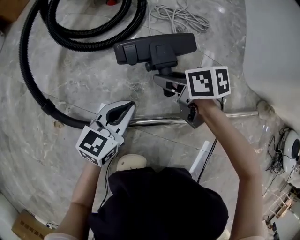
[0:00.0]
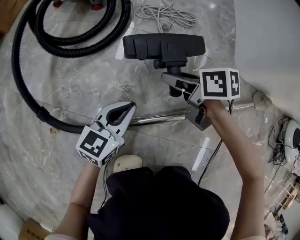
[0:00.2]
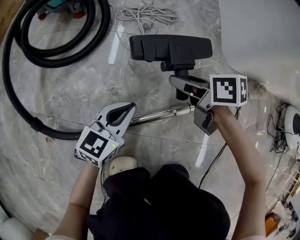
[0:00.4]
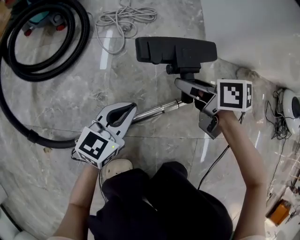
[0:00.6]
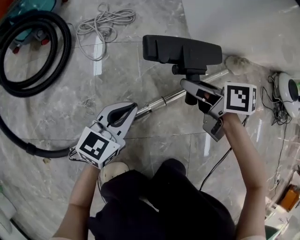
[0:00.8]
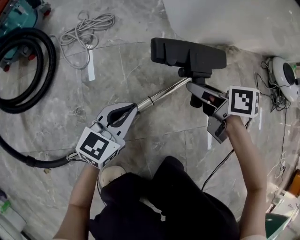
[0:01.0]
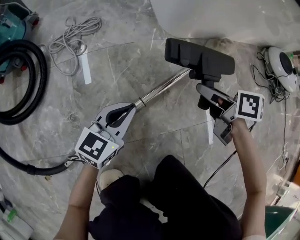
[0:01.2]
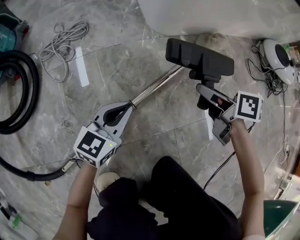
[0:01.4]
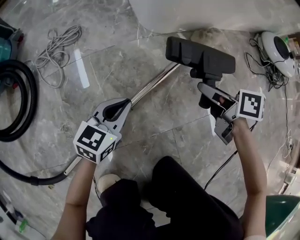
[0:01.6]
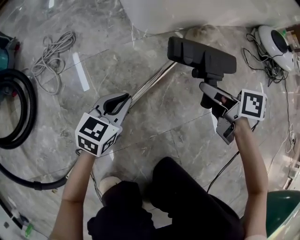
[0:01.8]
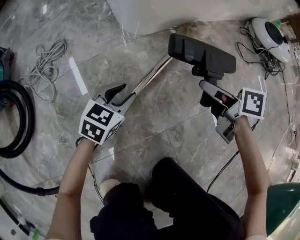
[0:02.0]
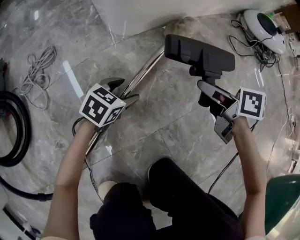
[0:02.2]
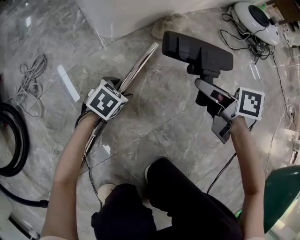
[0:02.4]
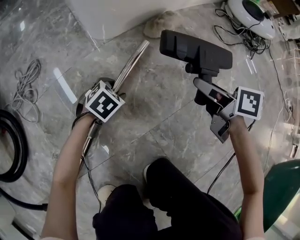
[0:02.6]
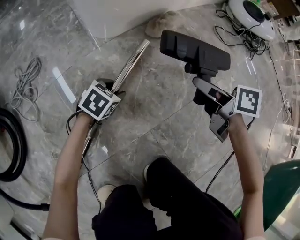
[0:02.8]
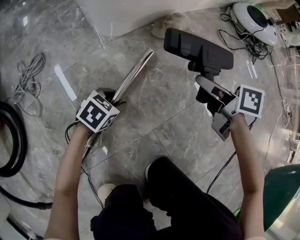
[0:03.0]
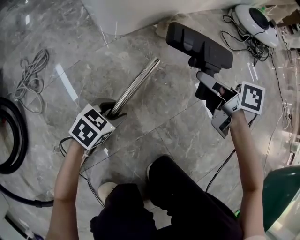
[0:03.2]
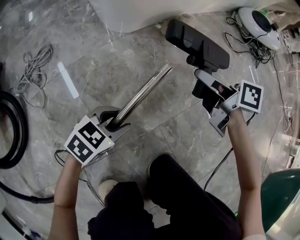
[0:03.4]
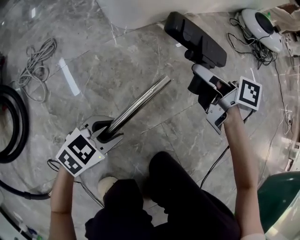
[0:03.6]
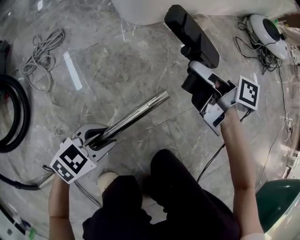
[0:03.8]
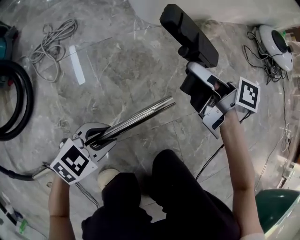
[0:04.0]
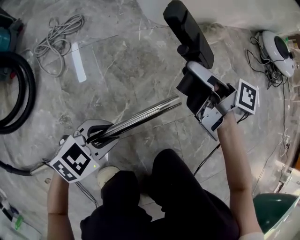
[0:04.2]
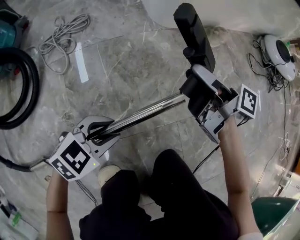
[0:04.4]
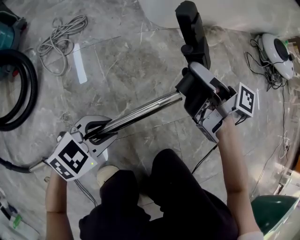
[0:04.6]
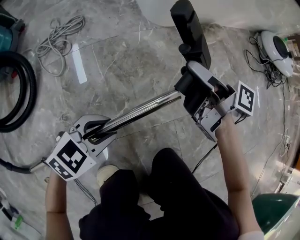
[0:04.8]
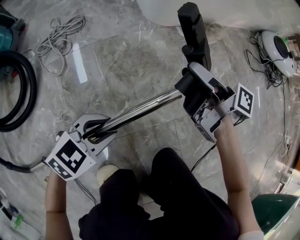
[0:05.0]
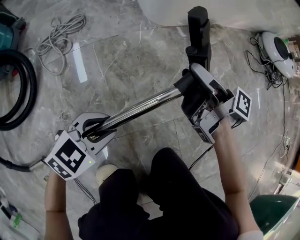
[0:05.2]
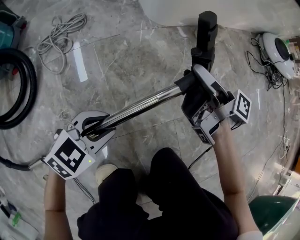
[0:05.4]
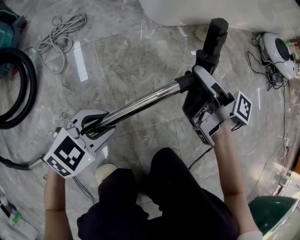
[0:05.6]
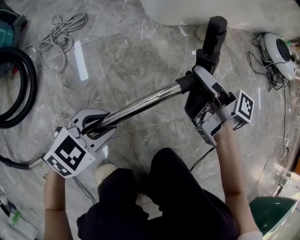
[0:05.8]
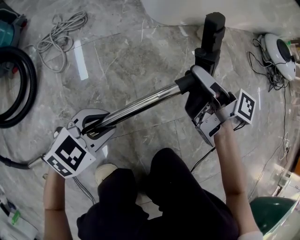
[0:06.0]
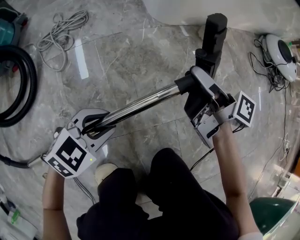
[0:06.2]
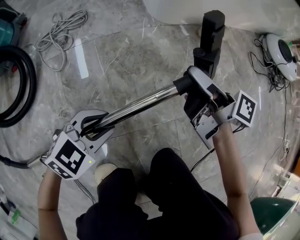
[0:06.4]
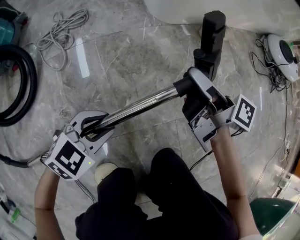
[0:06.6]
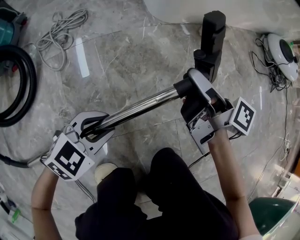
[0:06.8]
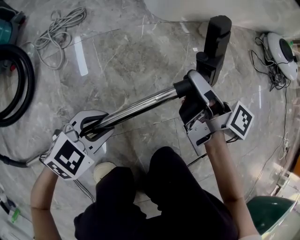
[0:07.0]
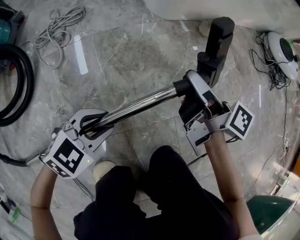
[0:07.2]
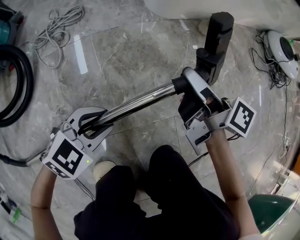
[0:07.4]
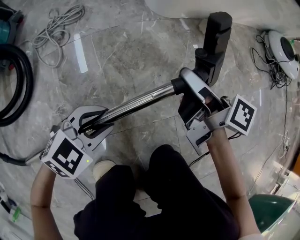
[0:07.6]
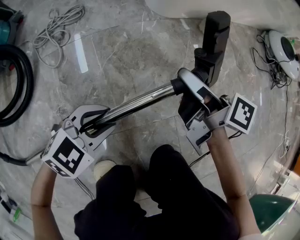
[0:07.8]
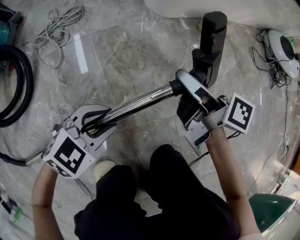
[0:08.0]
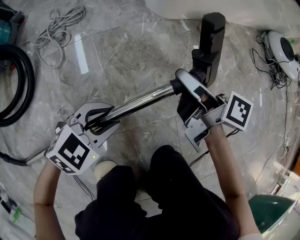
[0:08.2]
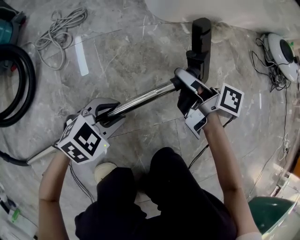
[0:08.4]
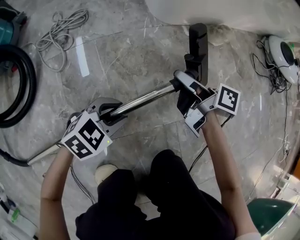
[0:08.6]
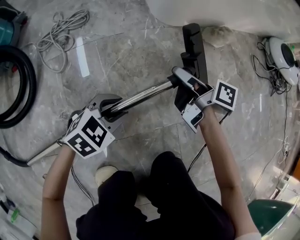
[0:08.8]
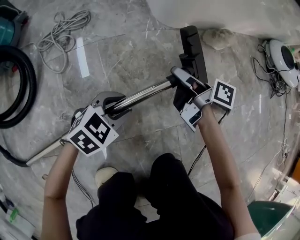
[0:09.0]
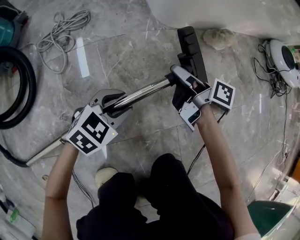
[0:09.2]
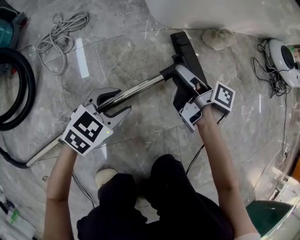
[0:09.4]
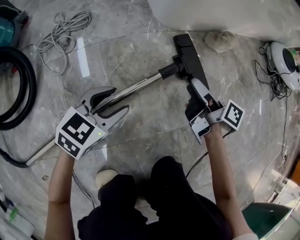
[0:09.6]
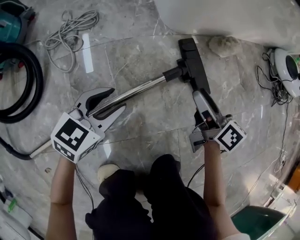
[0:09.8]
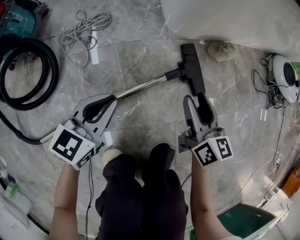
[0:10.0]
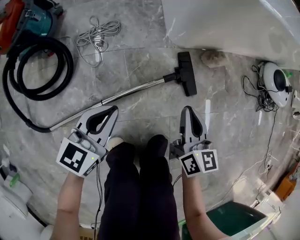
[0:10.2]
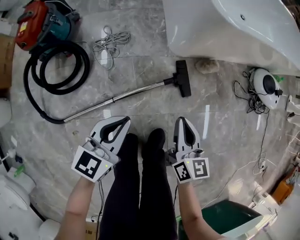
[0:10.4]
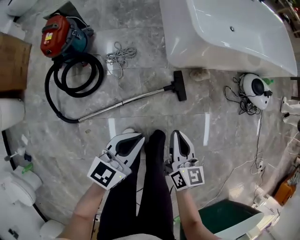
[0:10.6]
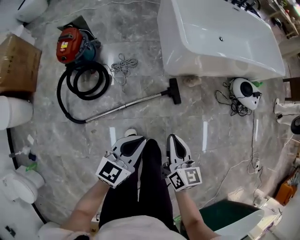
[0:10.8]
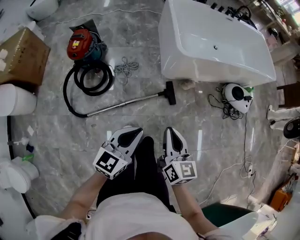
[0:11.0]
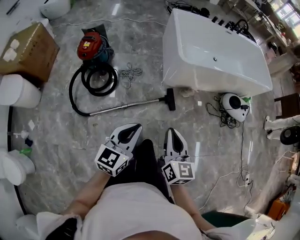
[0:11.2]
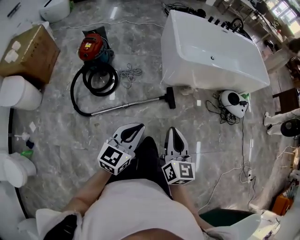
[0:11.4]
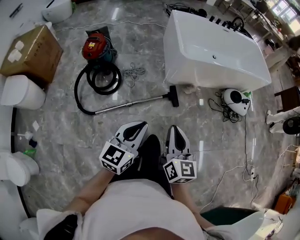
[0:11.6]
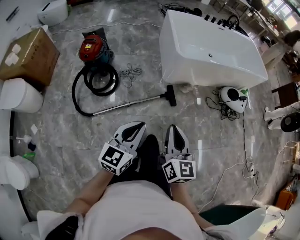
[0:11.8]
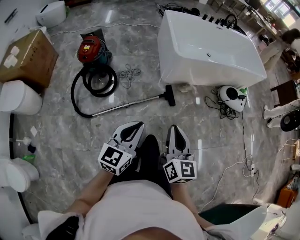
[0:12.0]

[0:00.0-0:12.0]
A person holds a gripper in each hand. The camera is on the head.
0:00.0 to 0:01.6: The left gripper ends up roughly 30 cm from where it was, and turns by roughly 40 degrees. The right gripper shifts by roughly 50 cm, and changes its angle by roughly 50 degrees.
0:01.6 to 0:03.0: The left gripper heads downward, covering some 10 cm, swivels about 40 degrees, and opens. The right gripper ends up some 10 cm from where it was.
0:03.0 to 0:04.4: The left gripper is displaced backward and upward by roughly 20 cm; the right gripper is displaced to the left by approximately 20 cm, and turns by some 40 degrees.
0:04.4 to 0:07.6: The grippers make only small movements.
0:07.6 to 0:09.0: The right gripper goes roughly 10 cm downward. The left gripper shifts approximately 10 cm forward and downward.
0:09.0 to 0:10.4: The two grippers go roughly 40 cm upward. The right gripper rotates around the line of its fingers by some 50 degrees, counterclockwise from behind, and closes; the left gripper changes its angle by approximately 50 degrees, and closes its fingers.
0:10.4 to 0:12.0: Both grippers move upward and backward, about 50 cm.

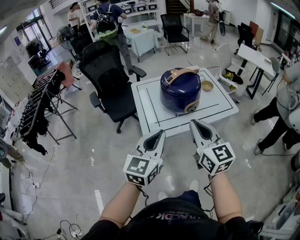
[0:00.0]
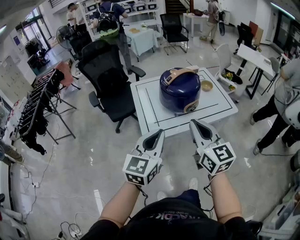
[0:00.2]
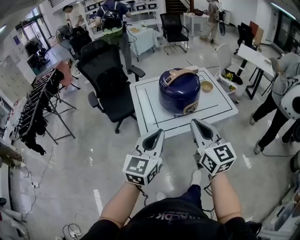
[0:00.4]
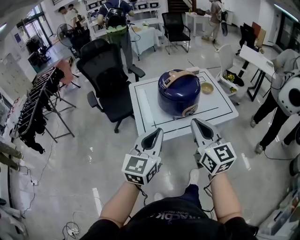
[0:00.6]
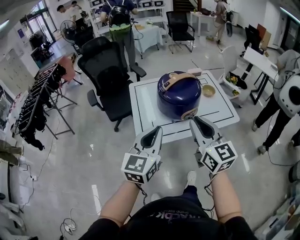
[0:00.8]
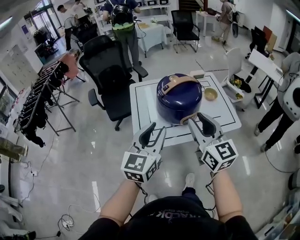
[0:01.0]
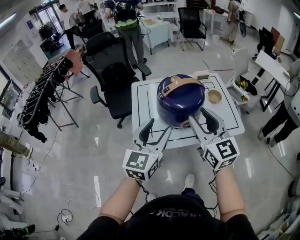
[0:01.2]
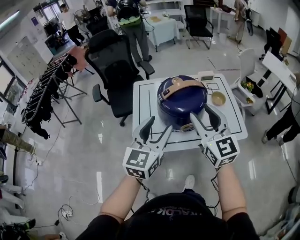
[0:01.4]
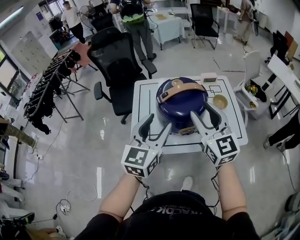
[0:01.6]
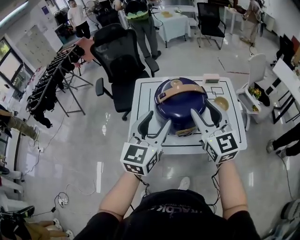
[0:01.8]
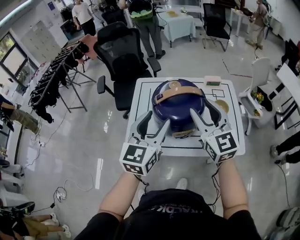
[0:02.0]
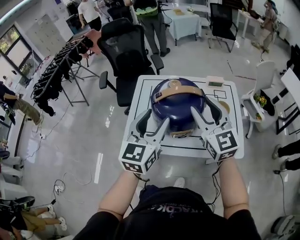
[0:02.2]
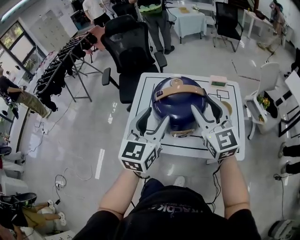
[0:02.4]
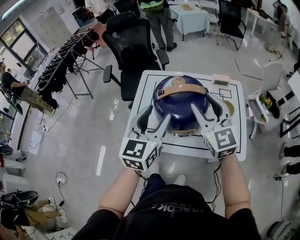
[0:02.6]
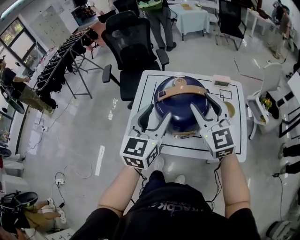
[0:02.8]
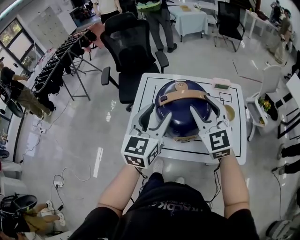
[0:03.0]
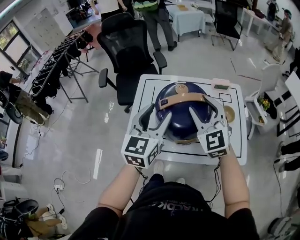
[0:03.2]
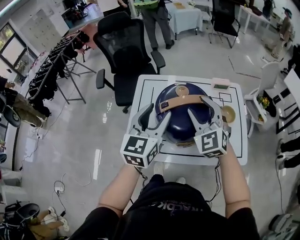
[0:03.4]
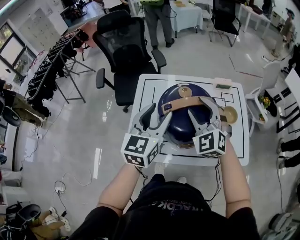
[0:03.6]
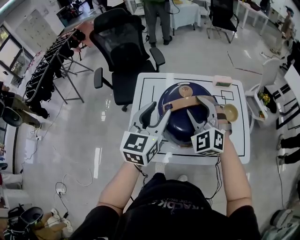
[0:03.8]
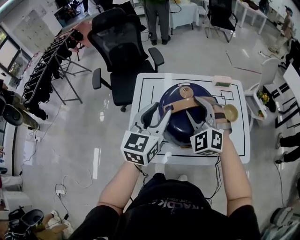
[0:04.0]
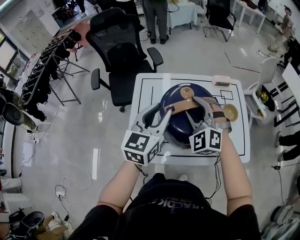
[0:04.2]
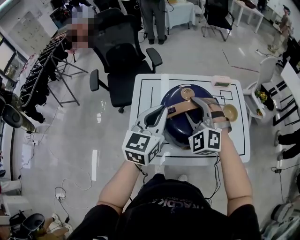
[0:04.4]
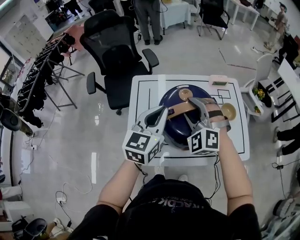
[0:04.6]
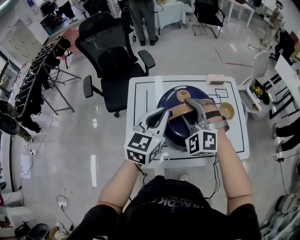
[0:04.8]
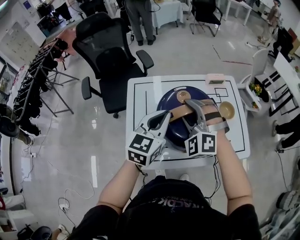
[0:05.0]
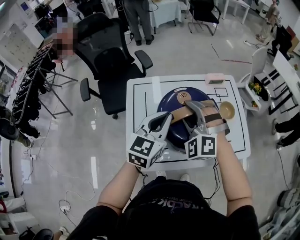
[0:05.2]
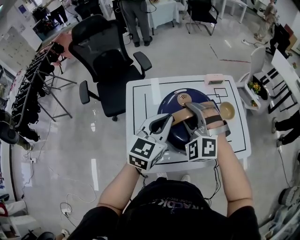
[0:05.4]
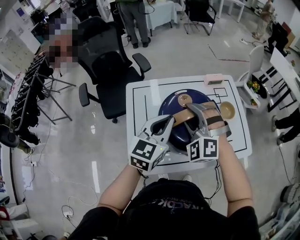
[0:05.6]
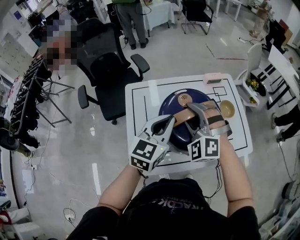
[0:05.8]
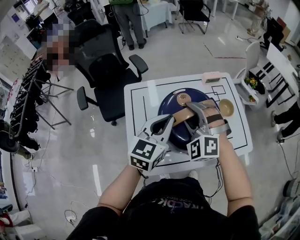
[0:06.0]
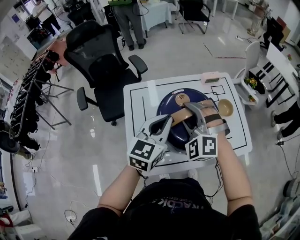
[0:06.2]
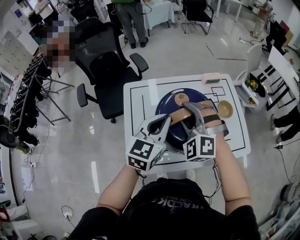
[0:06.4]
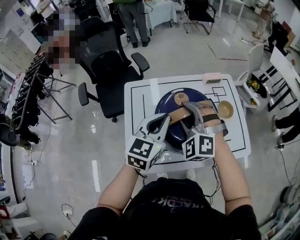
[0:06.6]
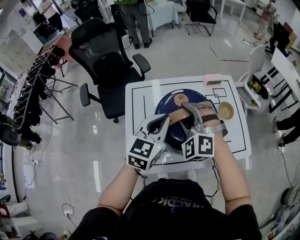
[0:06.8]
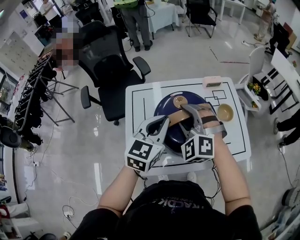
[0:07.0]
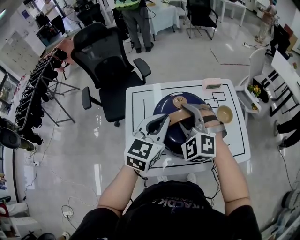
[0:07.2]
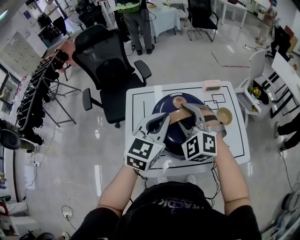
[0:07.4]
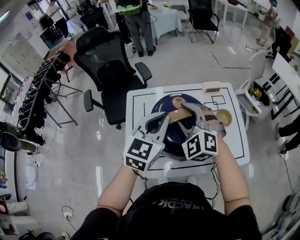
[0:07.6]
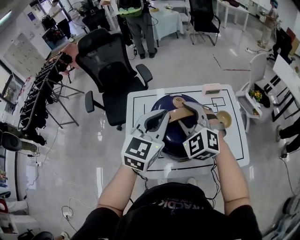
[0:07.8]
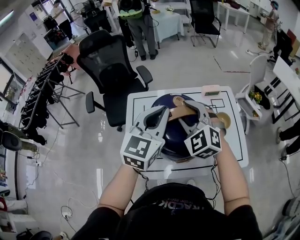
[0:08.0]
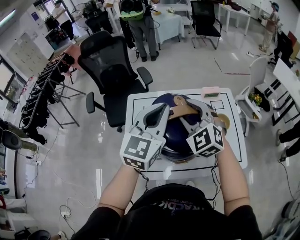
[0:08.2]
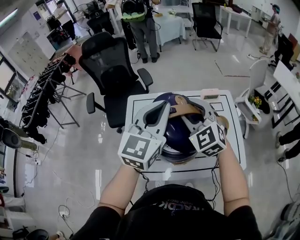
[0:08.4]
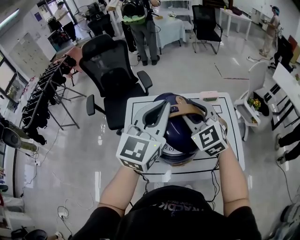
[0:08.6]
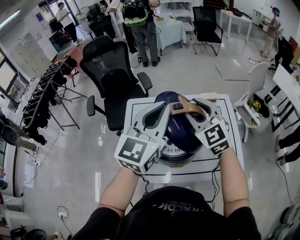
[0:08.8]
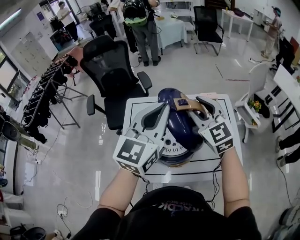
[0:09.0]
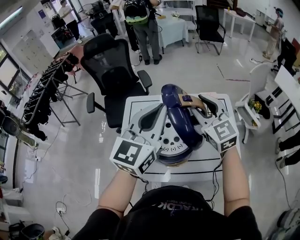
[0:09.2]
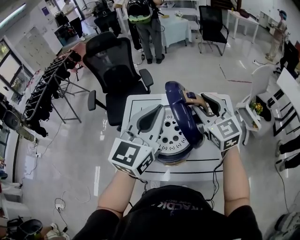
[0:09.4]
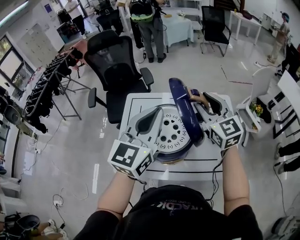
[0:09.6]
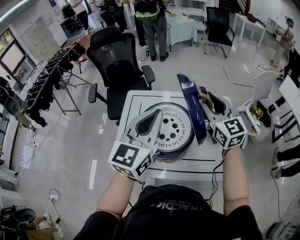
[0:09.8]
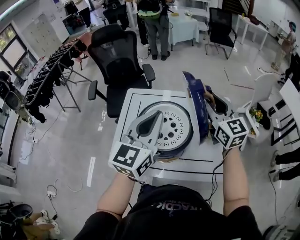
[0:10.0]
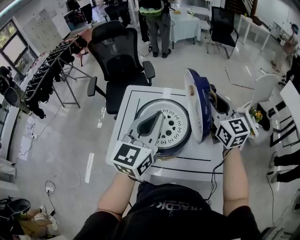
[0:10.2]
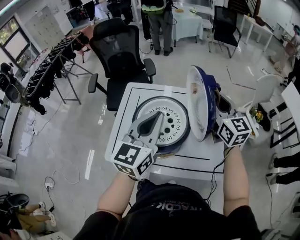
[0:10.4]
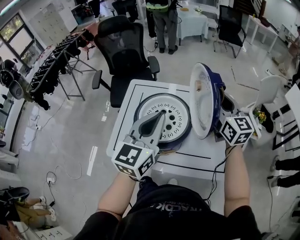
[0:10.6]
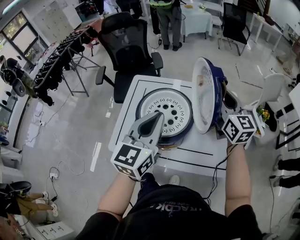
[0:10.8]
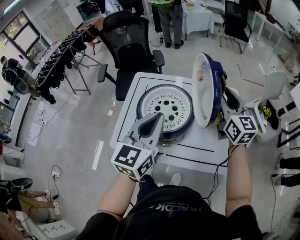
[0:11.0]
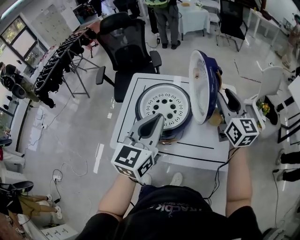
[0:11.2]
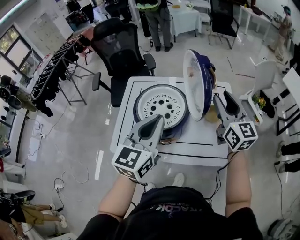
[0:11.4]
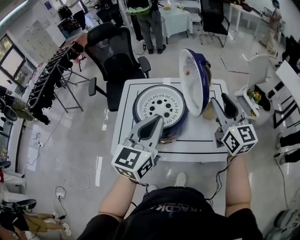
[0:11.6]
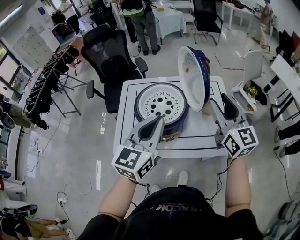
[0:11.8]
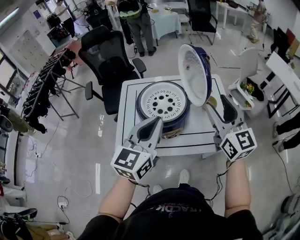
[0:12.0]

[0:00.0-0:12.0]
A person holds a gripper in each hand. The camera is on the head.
0:00.0 to 0:01.6: The grippers both shift forward and to the right by about 25 cm. The right gripper opens. The left gripper opens.
0:01.6 to 0:03.0: The grippers both shift forward by some 10 cm.
0:03.0 to 0:04.4: The right gripper moves downward, forward and to the left, approximately 10 cm, and turns by approximately 40 degrees; the left gripper shifts roughly 10 cm forward, and closes.
0:04.4 to 0:06.0: The grippers stay close to where they were, moving slightly.
0:06.0 to 0:07.6: The left gripper moves upward, about 5 cm.
0:07.6 to 0:09.0: The right gripper goes some 10 cm to the right and upward, and swivels about 30 degrees; the left gripper travels upward by roughly 10 cm.
0:09.0 to 0:10.4: The left gripper goes about 5 cm downward. The right gripper heads to the right, covering roughly 10 cm, and rotates about 20 degrees.
0:10.4 to 0:12.0: The left gripper is displaced backward by roughly 10 cm. The right gripper goes roughly 20 cm backward, and opens up.
